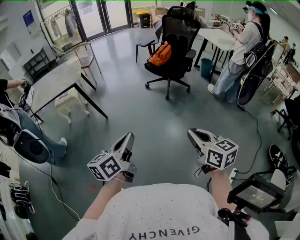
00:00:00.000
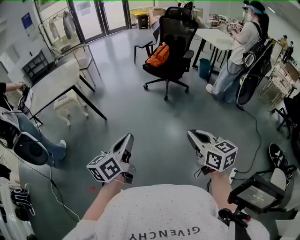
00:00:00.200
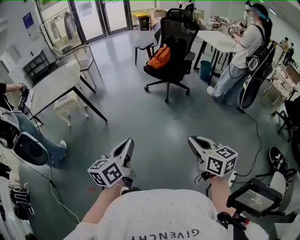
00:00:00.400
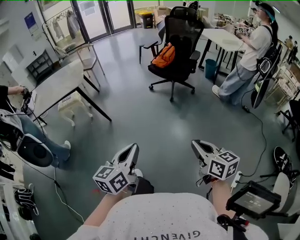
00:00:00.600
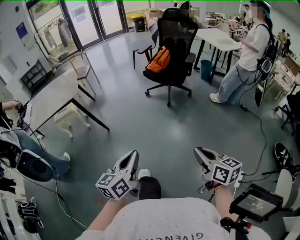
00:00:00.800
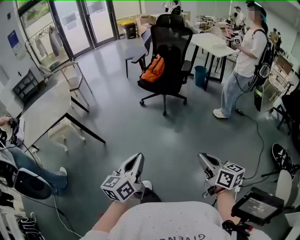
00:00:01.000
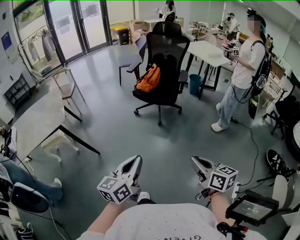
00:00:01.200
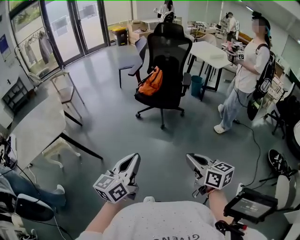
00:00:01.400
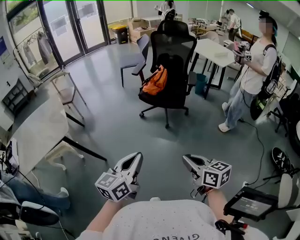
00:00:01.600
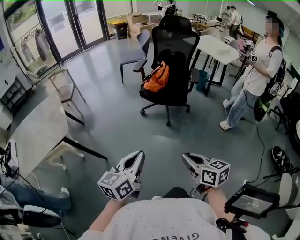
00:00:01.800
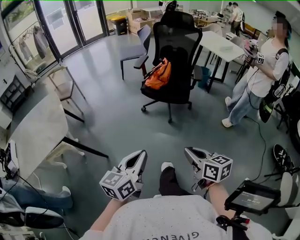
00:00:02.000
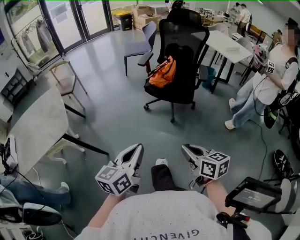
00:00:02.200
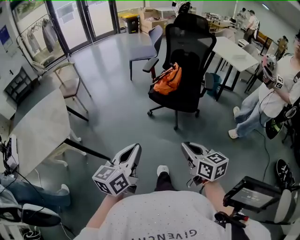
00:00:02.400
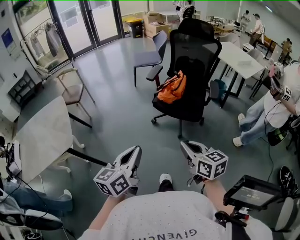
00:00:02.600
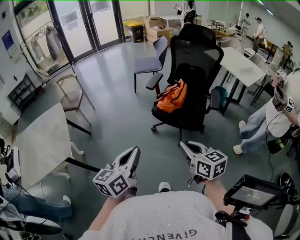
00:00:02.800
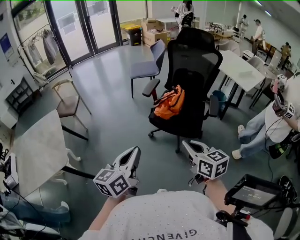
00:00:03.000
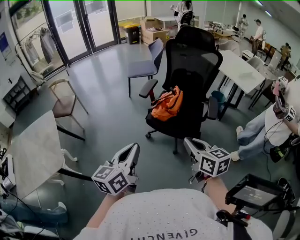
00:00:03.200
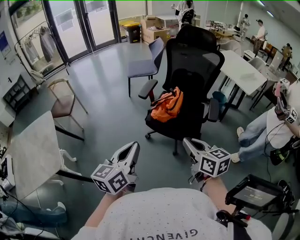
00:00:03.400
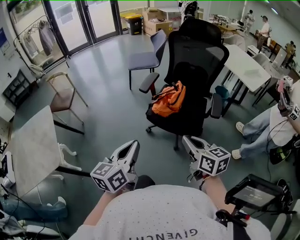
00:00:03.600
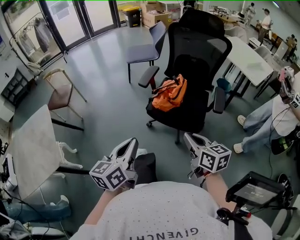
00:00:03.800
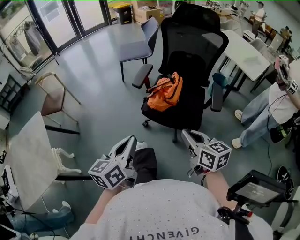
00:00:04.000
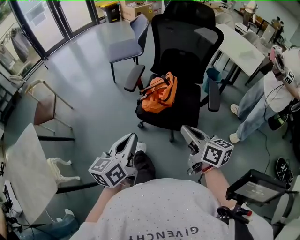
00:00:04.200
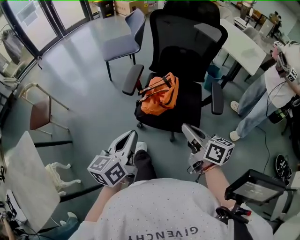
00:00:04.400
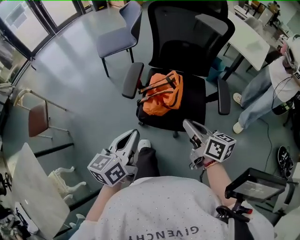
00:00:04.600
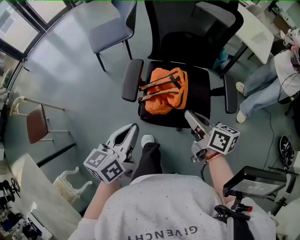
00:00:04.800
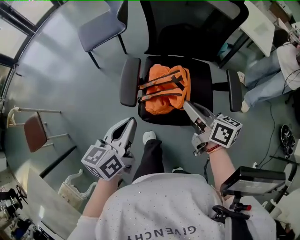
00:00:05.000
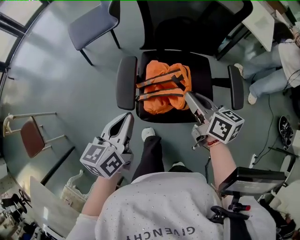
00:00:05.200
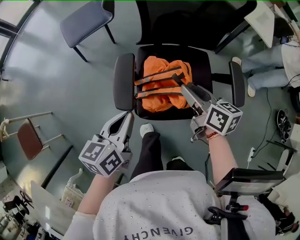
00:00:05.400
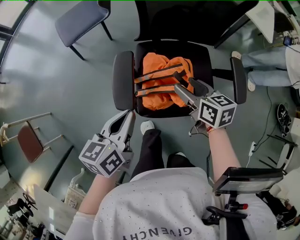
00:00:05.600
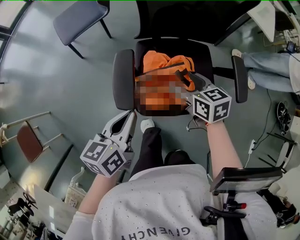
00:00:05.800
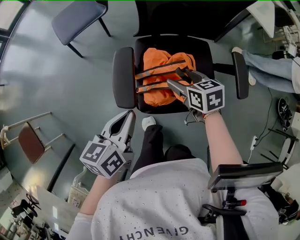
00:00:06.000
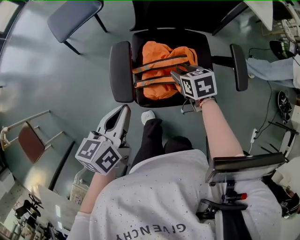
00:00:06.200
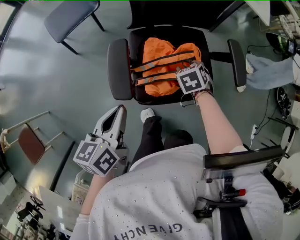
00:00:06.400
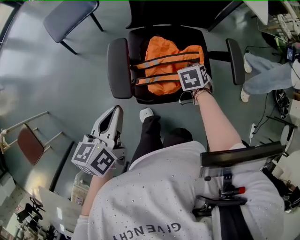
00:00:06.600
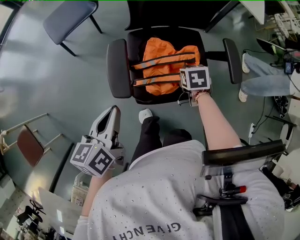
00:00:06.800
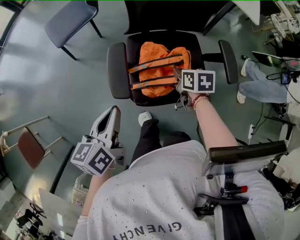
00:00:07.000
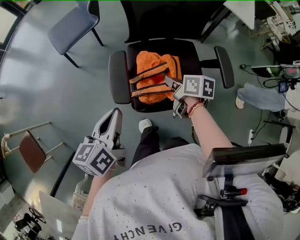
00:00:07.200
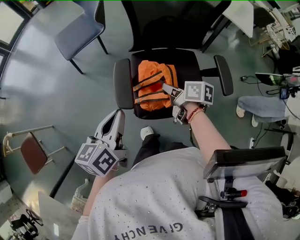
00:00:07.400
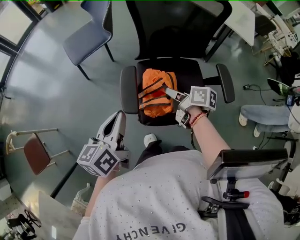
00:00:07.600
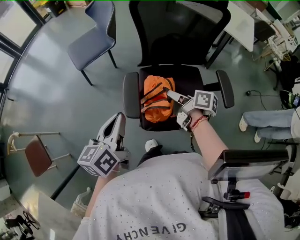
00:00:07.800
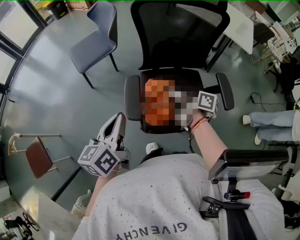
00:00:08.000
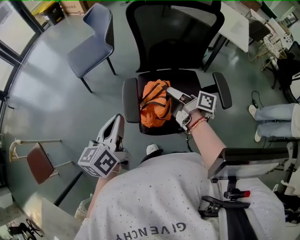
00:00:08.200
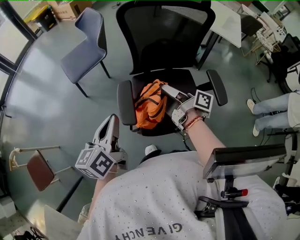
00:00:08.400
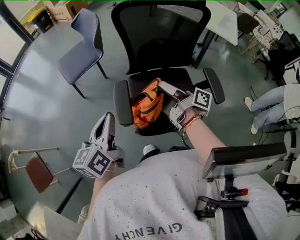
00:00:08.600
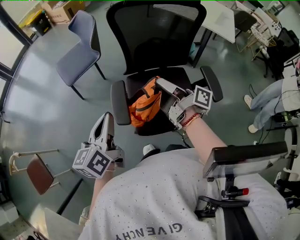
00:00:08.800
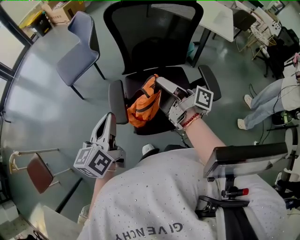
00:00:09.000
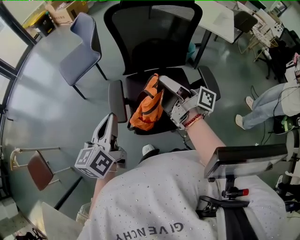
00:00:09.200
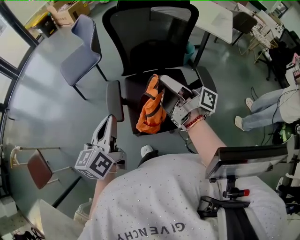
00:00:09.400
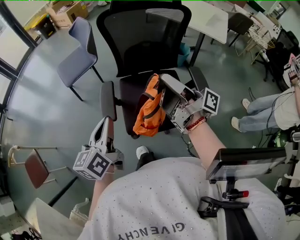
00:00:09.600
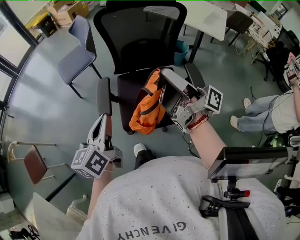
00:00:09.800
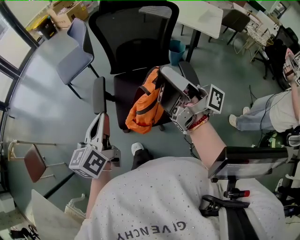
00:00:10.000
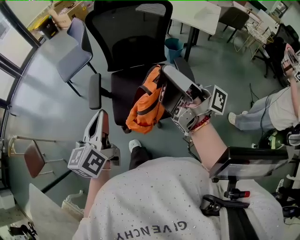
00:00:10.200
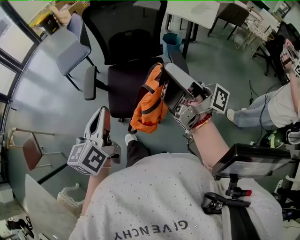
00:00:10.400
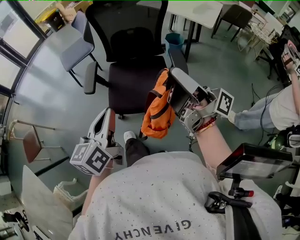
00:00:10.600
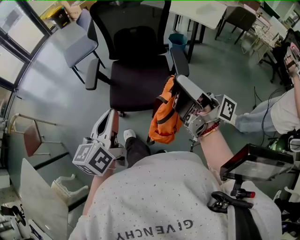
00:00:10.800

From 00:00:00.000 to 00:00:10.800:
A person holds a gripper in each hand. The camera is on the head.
From 00:00:00.000 to 00:00:01.600: The left gripper is displaced forward by approximately 35 cm, and turns by some 20 degrees. Meanwhile the right gripper heads forward and to the left, covering roughly 30 cm.
From 00:00:01.600 to 00:00:03.000: The grippers both shift forward by some 35 cm.
From 00:00:03.000 to 00:00:04.600: Both grippers move forward, approximately 35 cm. The right gripper swivels roughly 30 degrees.
From 00:00:04.600 to 00:00:06.200: Both grippers travel together forward and downward, approximately 25 cm. The left gripper swivels approximately 20 degrees. Meanwhile the right gripper tips its fingers downward by about 40 degrees, and opens its fingers.
From 00:00:06.200 to 00:00:07.800: Both grippers move upward, roughly 10 cm. The right gripper angles its fingers upward, by roughly 40 degrees, and closes its fingers.
From 00:00:07.800 to 00:00:09.200: The left gripper shifts by some 5 cm; the right gripper moves upward, some 15 cm, and tilts its fingers some 40 degrees upward.
From 00:00:09.200 to 00:00:10.800: The grippers both shift backward and to the right by about 35 cm.

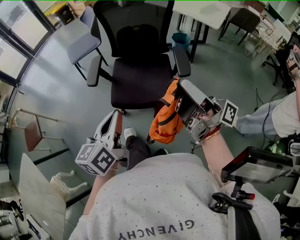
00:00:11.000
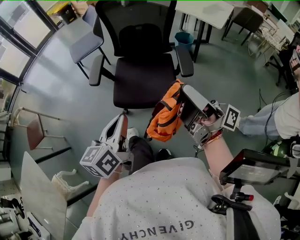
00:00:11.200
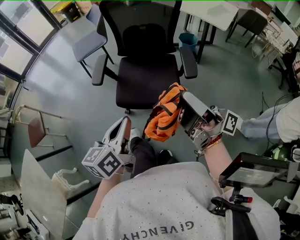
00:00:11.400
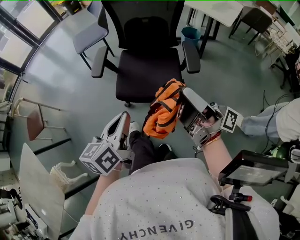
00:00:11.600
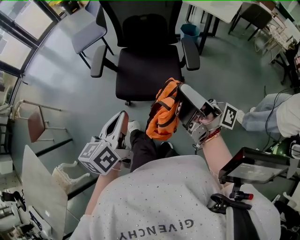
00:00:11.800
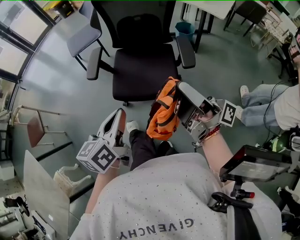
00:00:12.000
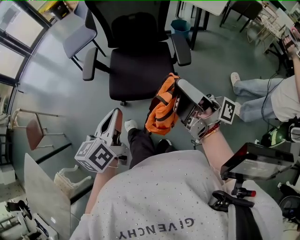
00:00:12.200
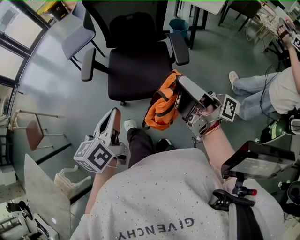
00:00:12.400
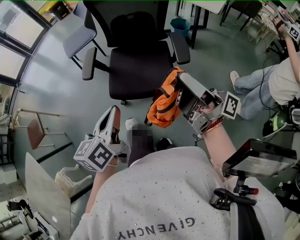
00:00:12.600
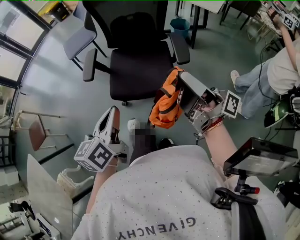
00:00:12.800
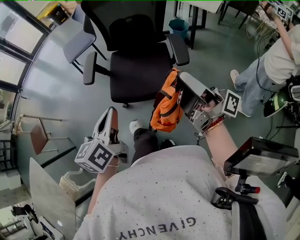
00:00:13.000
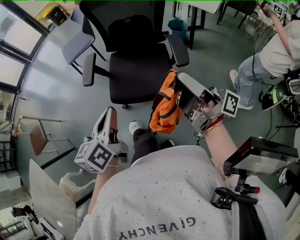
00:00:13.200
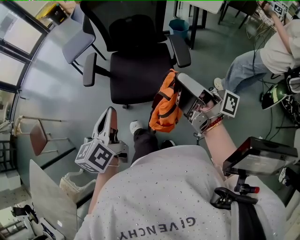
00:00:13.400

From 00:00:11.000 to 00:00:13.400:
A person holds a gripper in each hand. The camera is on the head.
From 00:00:11.000 to 00:00:13.400: The grippers stay close to where they were, moving slightly.

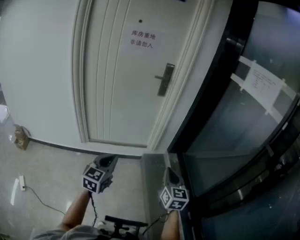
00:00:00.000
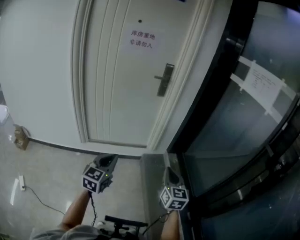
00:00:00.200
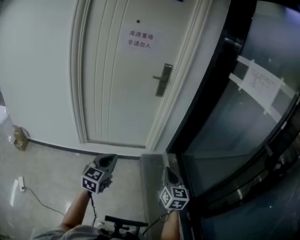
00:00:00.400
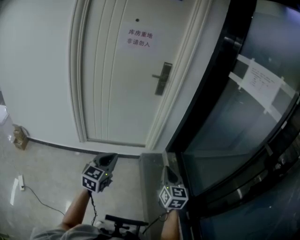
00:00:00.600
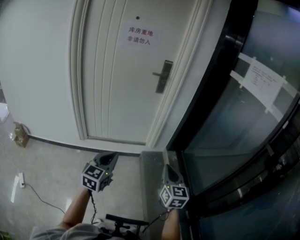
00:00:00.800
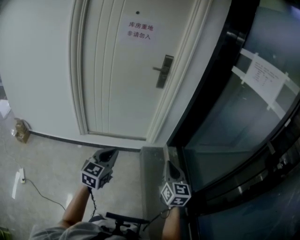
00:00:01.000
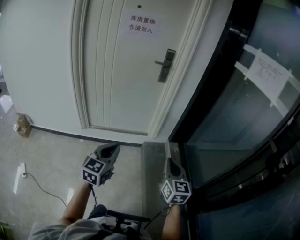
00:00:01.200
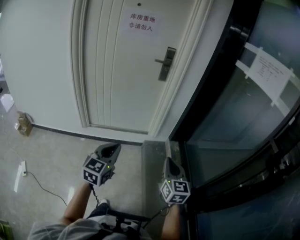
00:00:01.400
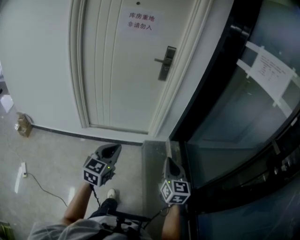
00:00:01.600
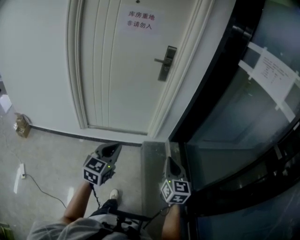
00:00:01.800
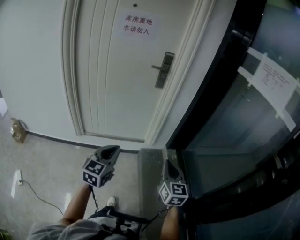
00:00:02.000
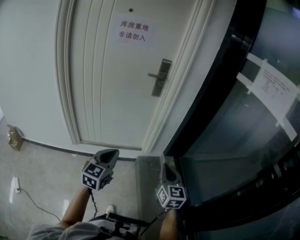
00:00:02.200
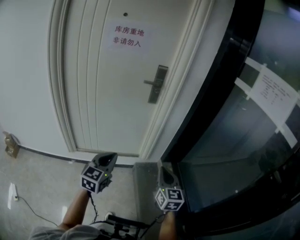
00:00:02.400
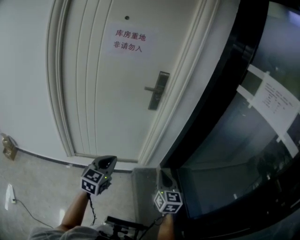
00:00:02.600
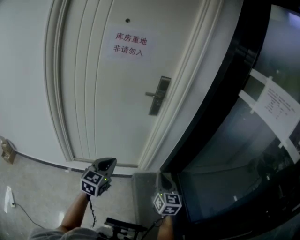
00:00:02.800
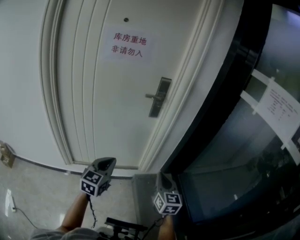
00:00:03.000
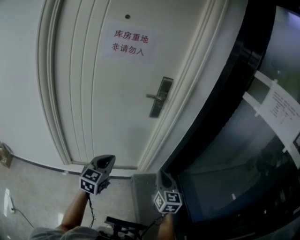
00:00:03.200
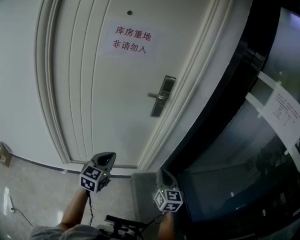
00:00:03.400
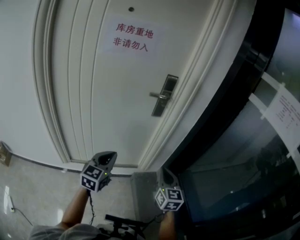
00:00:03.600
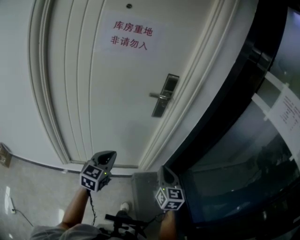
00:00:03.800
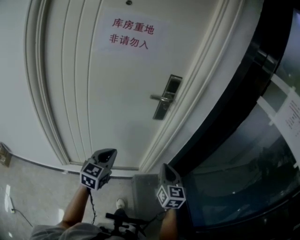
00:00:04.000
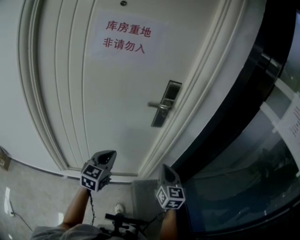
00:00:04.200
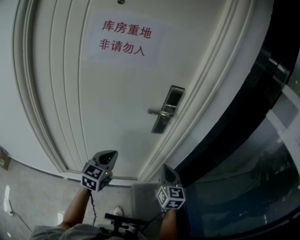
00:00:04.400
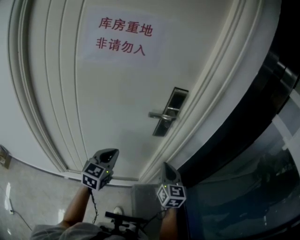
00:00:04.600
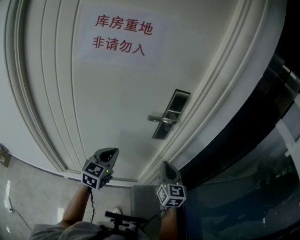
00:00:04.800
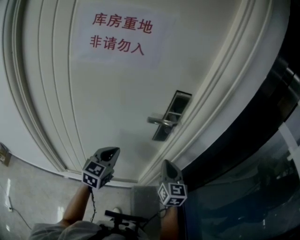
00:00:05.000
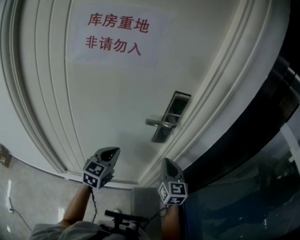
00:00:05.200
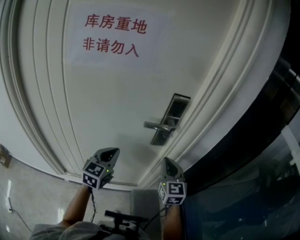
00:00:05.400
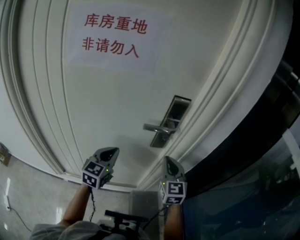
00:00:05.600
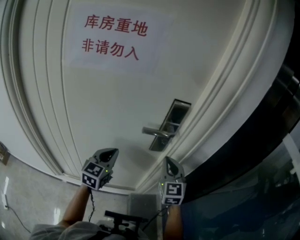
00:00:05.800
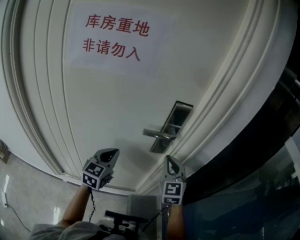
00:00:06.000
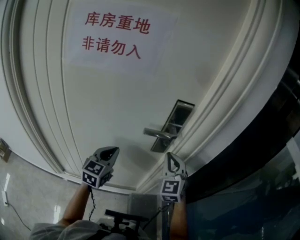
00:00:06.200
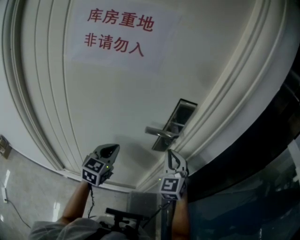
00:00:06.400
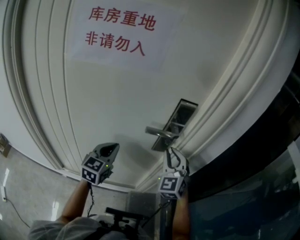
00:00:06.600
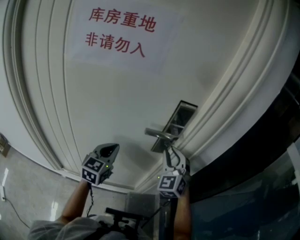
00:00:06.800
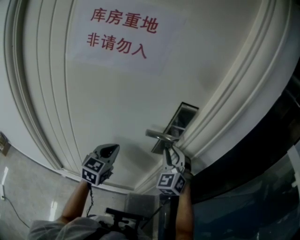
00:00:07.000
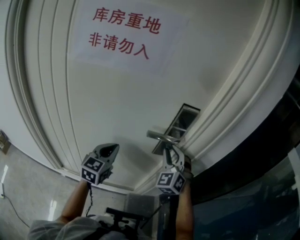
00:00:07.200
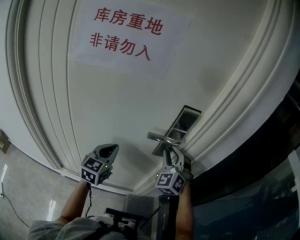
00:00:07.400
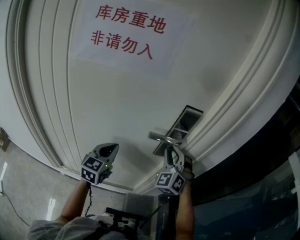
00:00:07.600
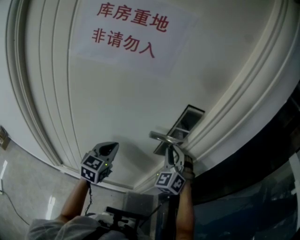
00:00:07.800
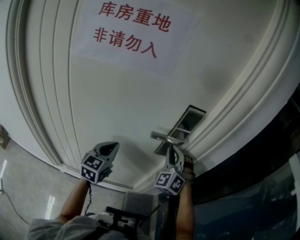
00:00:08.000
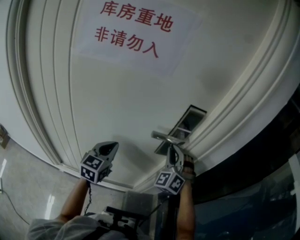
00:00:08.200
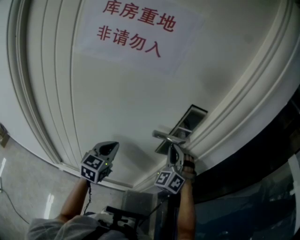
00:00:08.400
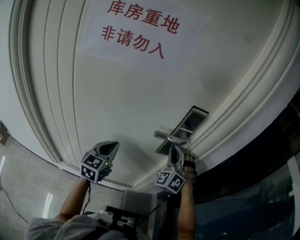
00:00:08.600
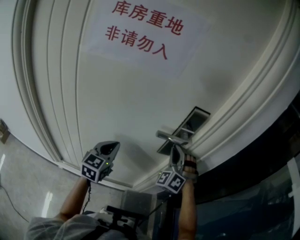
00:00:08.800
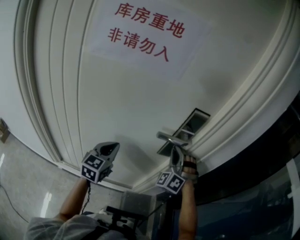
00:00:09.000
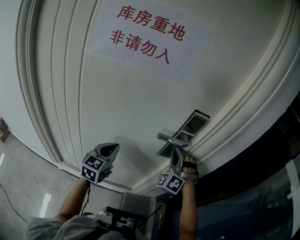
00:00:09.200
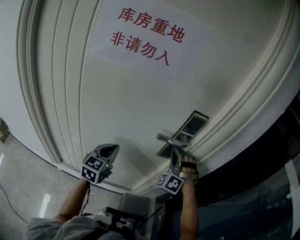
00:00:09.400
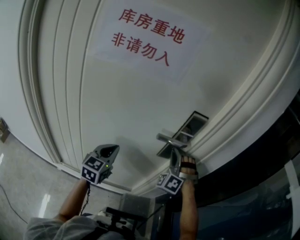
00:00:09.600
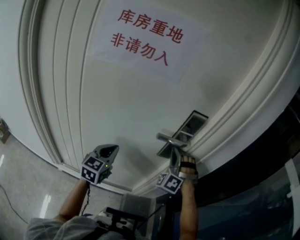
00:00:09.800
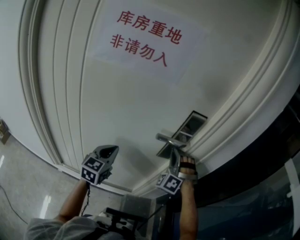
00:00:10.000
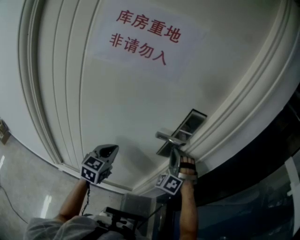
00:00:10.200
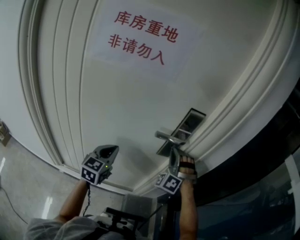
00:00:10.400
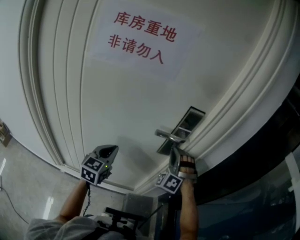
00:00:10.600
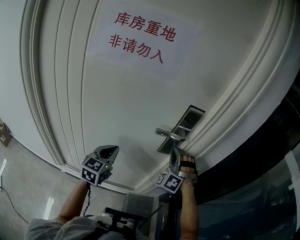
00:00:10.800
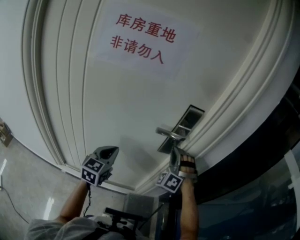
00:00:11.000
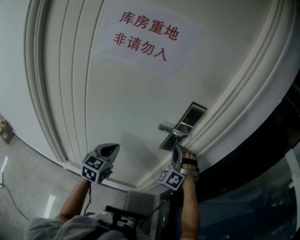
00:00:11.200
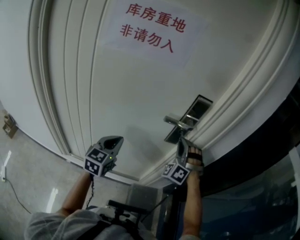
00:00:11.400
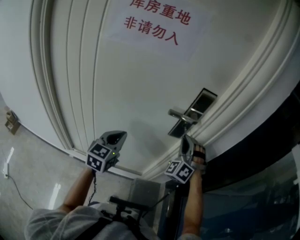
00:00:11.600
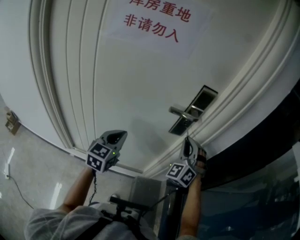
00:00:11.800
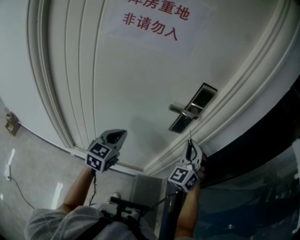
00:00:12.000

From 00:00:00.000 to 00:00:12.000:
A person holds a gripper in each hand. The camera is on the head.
From 00:00:00.000 to 00:00:01.600: The left gripper heads to the right, covering some 5 cm.
From 00:00:01.600 to 00:00:03.000: The two grippers go roughly 30 cm forward.
From 00:00:03.000 to 00:00:04.400: Both grippers move forward, roughly 25 cm.
From 00:00:04.400 to 00:00:06.000: Both grippers move forward, roughly 15 cm. The right gripper changes its angle by roughly 20 degrees.
From 00:00:06.000 to 00:00:07.600: The right gripper travels forward by approximately 5 cm, rotates some 40 degrees, and opens its fingers.
From 00:00:07.600 to 00:00:09.000: The right gripper rotates some 20 degrees.
From 00:00:09.000 to 00:00:10.400: The grippers make only small movements.
From 00:00:10.400 to 00:00:12.000: The two grippers go about 5 cm backward. The right gripper rotates some 30 degrees.
